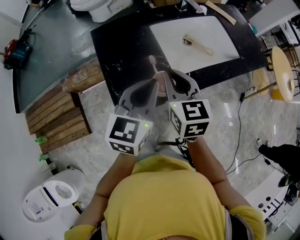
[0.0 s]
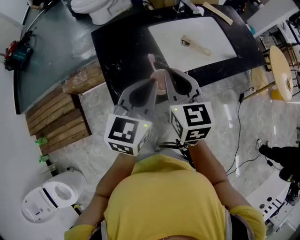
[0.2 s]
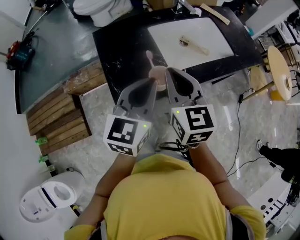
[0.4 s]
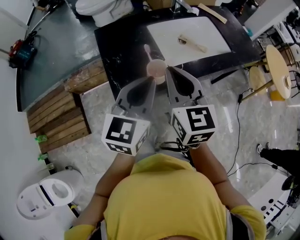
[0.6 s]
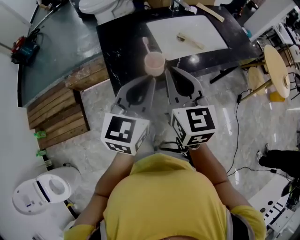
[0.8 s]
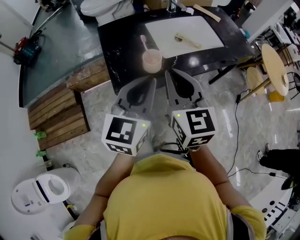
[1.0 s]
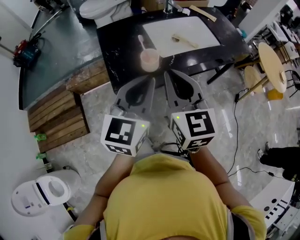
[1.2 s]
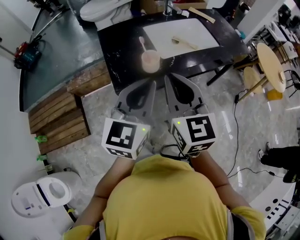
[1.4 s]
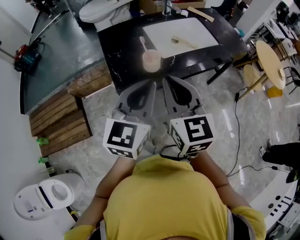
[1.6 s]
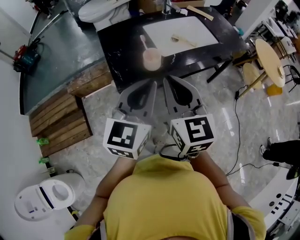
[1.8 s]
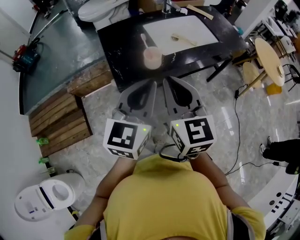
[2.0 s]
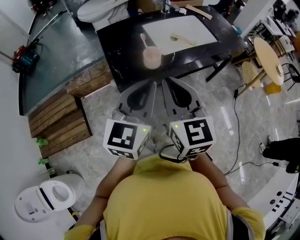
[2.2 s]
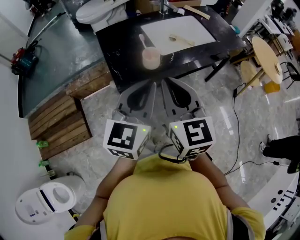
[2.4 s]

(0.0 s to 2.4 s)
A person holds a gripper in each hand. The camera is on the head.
0.0 s - 1.2 s: Both grippers travel together backward and upward, some 20 cm.
1.2 s - 2.4 s: The right gripper travels backward by roughly 5 cm.

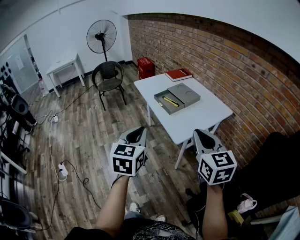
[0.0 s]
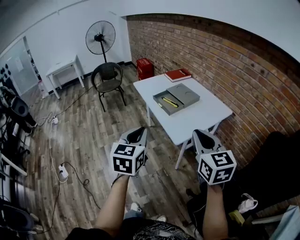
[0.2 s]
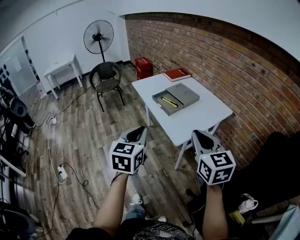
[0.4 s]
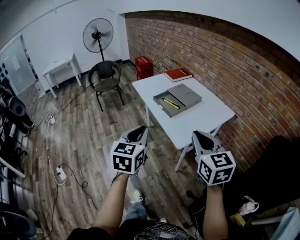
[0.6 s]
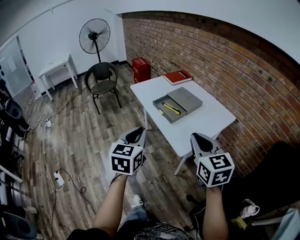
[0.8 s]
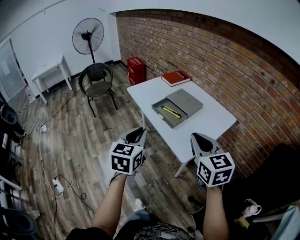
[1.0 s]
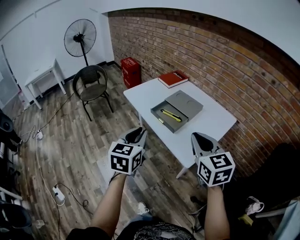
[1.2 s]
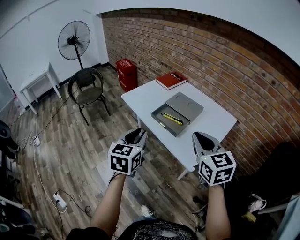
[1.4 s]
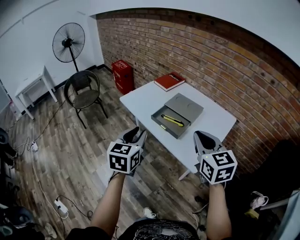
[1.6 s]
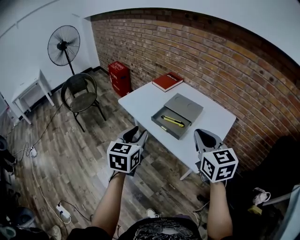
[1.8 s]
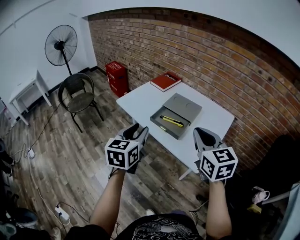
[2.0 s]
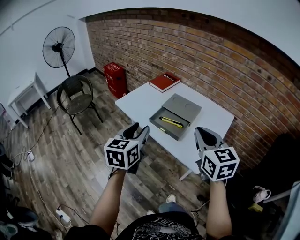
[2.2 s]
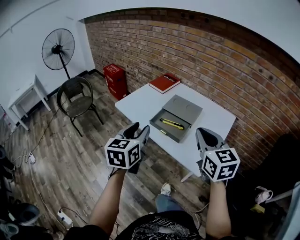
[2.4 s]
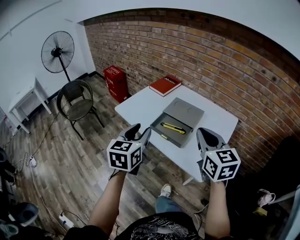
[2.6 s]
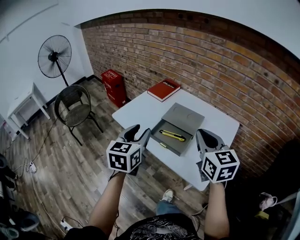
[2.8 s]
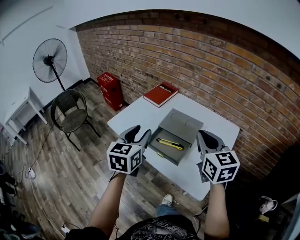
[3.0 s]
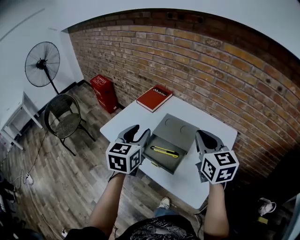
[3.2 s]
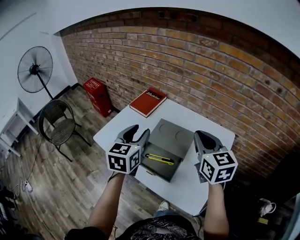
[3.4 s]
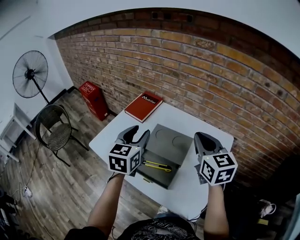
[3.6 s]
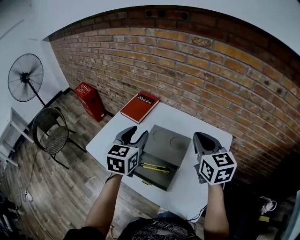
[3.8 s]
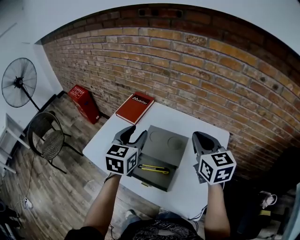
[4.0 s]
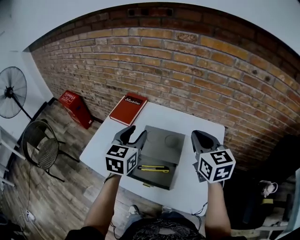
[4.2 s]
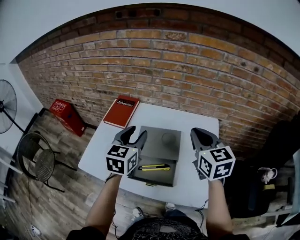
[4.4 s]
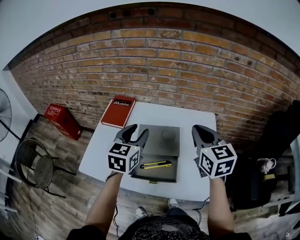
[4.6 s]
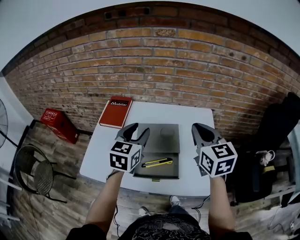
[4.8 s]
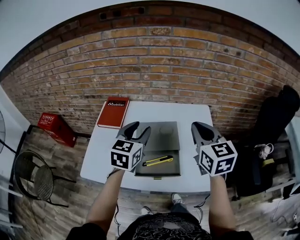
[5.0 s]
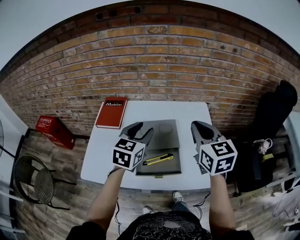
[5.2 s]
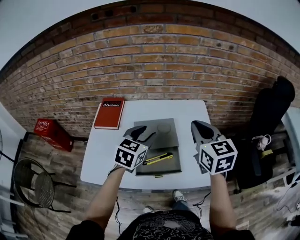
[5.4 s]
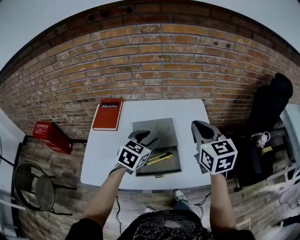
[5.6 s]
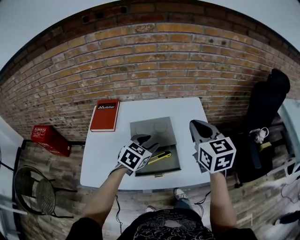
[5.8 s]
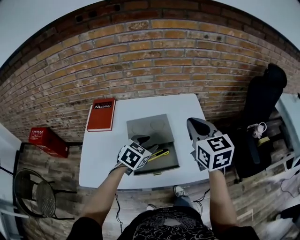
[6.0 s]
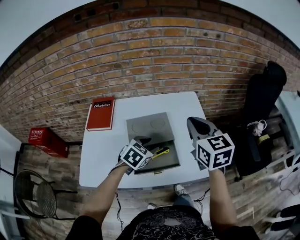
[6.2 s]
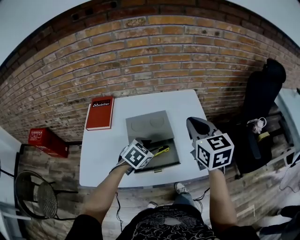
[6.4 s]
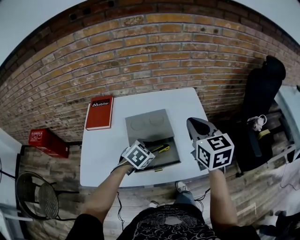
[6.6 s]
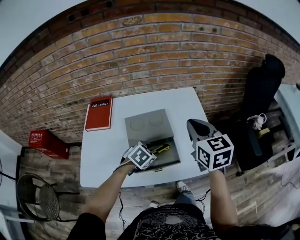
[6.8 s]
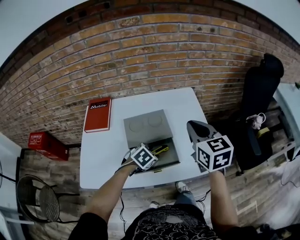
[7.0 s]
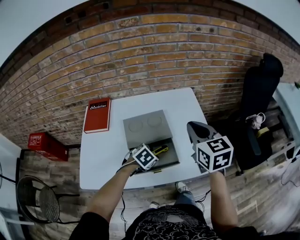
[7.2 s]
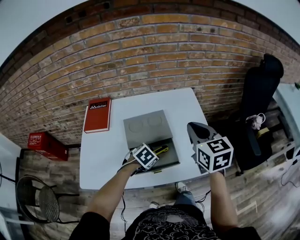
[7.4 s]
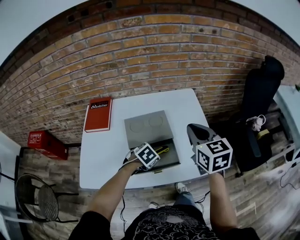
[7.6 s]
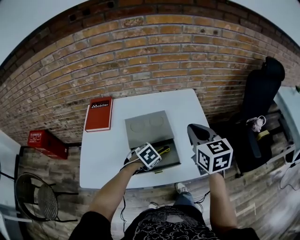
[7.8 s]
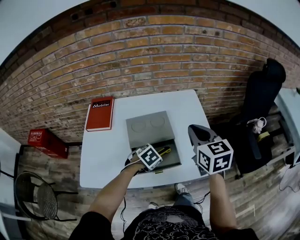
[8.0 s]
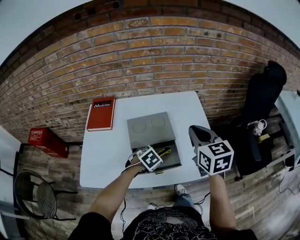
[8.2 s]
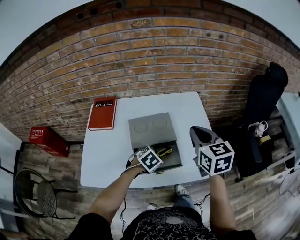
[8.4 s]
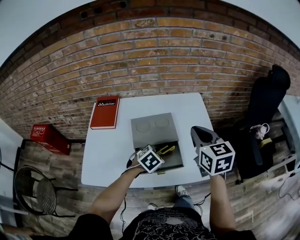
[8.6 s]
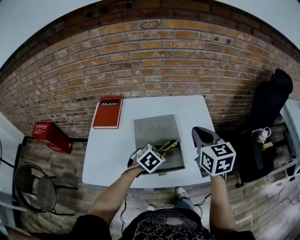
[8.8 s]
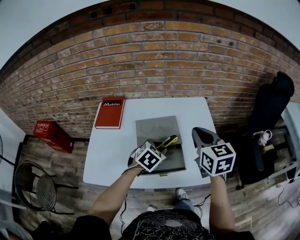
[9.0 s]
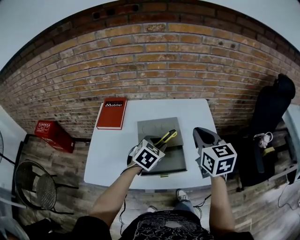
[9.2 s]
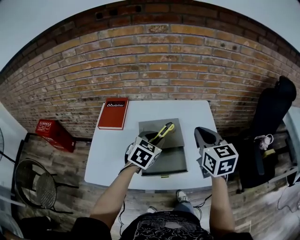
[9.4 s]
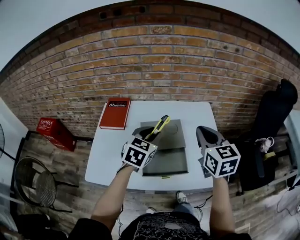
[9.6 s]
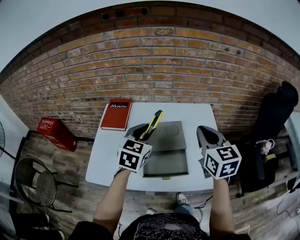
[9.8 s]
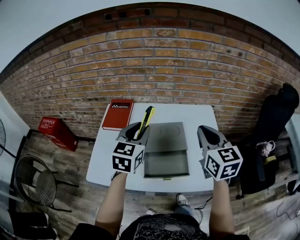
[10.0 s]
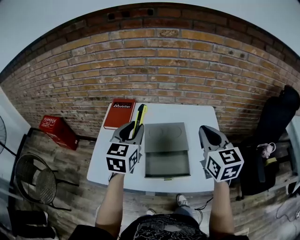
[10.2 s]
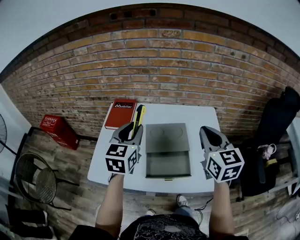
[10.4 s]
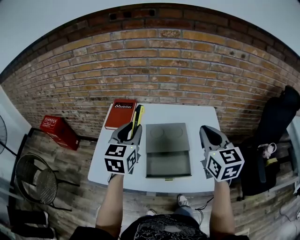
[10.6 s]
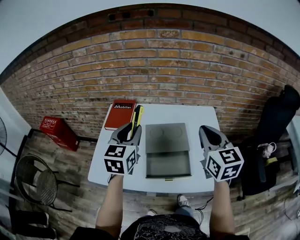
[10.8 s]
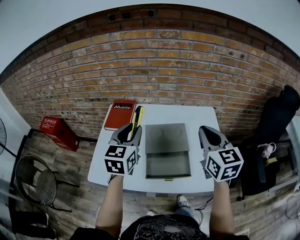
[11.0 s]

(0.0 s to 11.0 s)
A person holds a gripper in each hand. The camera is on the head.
0.0 s - 1.6 s: The grippers both shift forward and to the left by approximately 25 cm. The left gripper opens.
1.6 s - 3.2 s: The two grippers go some 25 cm forward.
3.2 s - 4.8 s: The right gripper swivels approximately 30 degrees. The left gripper shifts by some 15 cm, and rotates some 30 degrees.
4.8 s - 6.2 s: The left gripper goes some 15 cm downward and to the right, and changes its angle by approximately 40 degrees.
6.2 s - 7.8 s: The left gripper goes roughly 10 cm downward, and changes its angle by approximately 20 degrees.
7.8 s - 9.4 s: The left gripper shifts approximately 15 cm upward, and tips its fingers upward by some 30 degrees.
9.4 s - 11.0 s: The left gripper moves to the left and upward, some 15 cm, and rotates about 30 degrees.

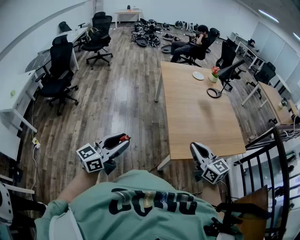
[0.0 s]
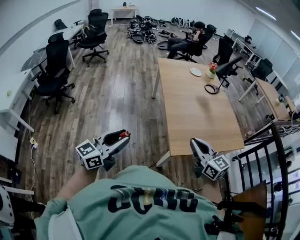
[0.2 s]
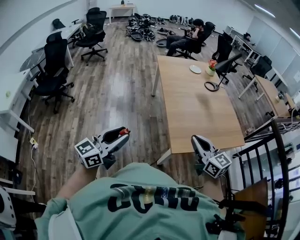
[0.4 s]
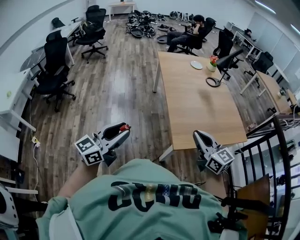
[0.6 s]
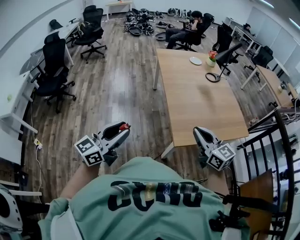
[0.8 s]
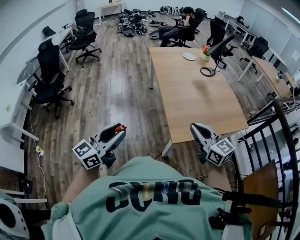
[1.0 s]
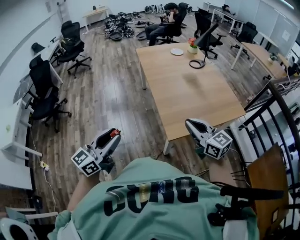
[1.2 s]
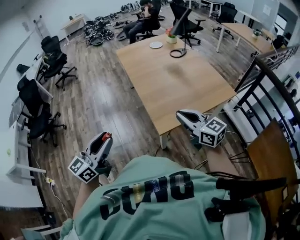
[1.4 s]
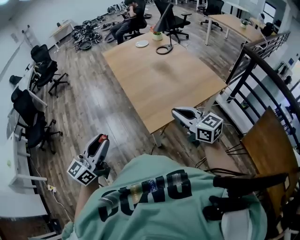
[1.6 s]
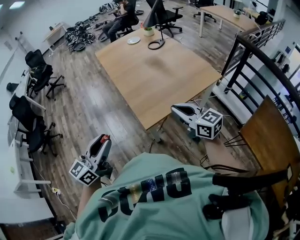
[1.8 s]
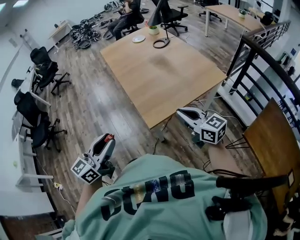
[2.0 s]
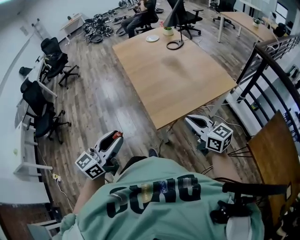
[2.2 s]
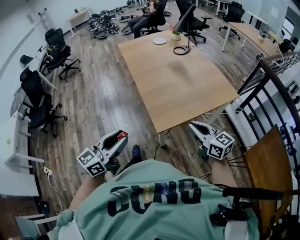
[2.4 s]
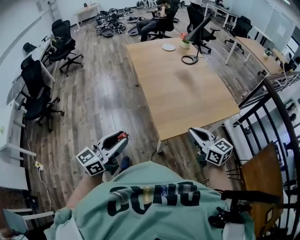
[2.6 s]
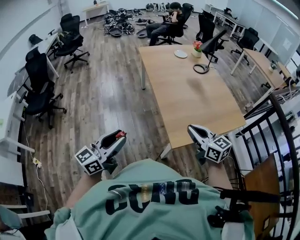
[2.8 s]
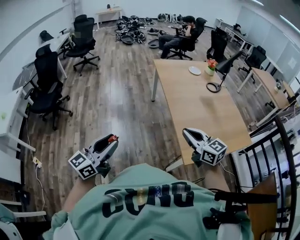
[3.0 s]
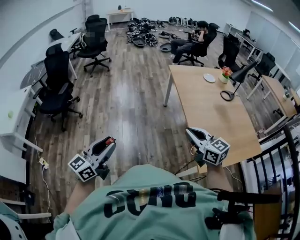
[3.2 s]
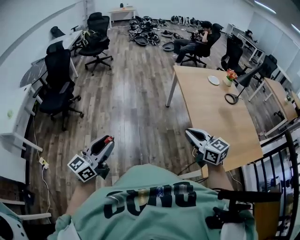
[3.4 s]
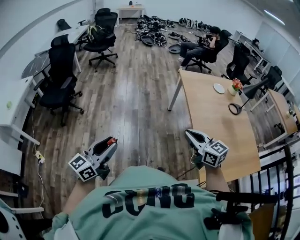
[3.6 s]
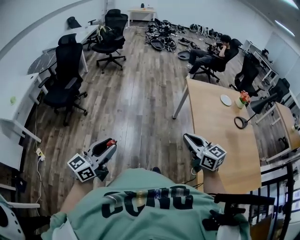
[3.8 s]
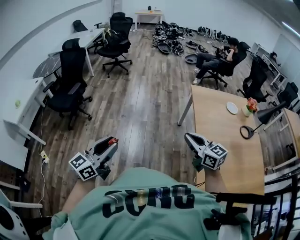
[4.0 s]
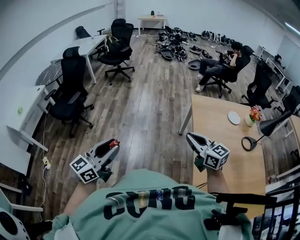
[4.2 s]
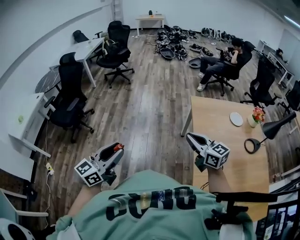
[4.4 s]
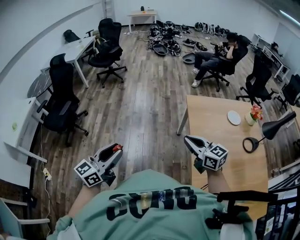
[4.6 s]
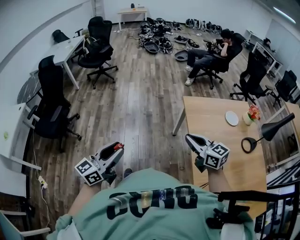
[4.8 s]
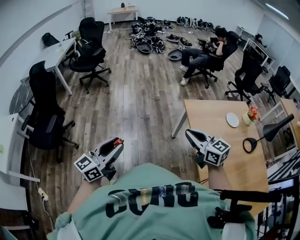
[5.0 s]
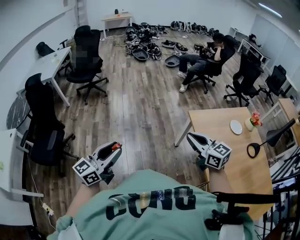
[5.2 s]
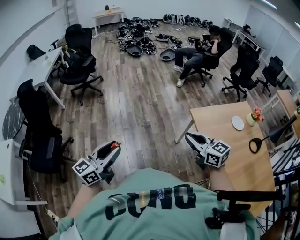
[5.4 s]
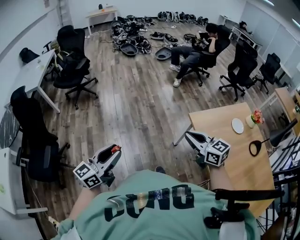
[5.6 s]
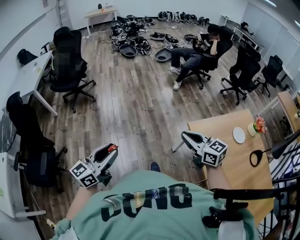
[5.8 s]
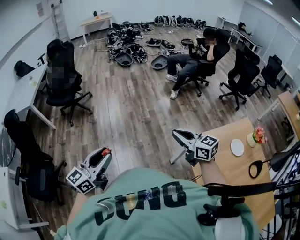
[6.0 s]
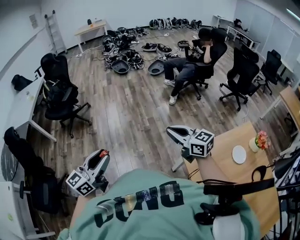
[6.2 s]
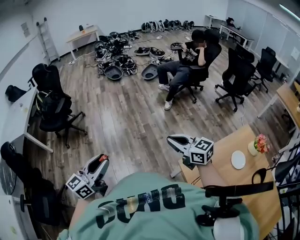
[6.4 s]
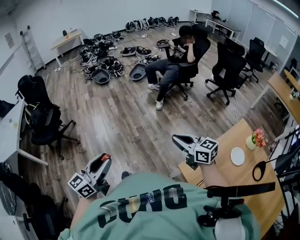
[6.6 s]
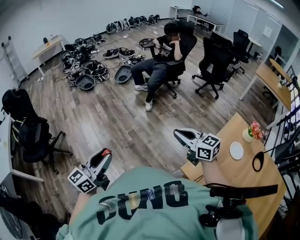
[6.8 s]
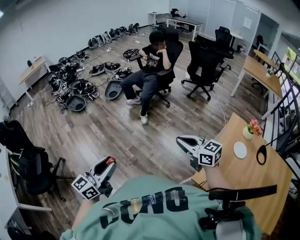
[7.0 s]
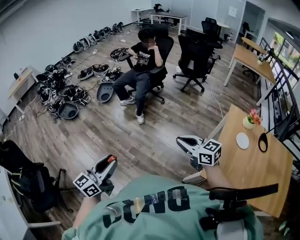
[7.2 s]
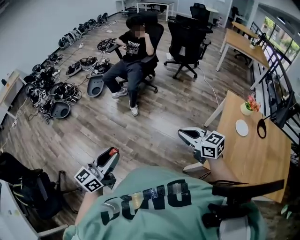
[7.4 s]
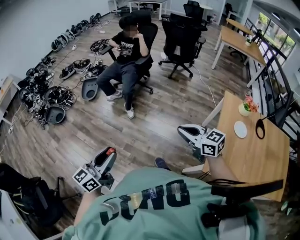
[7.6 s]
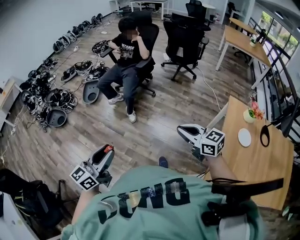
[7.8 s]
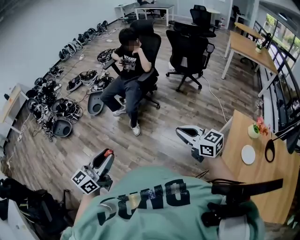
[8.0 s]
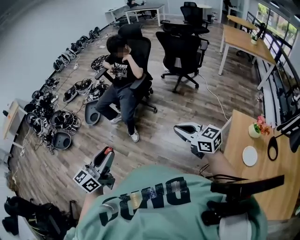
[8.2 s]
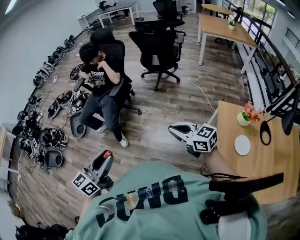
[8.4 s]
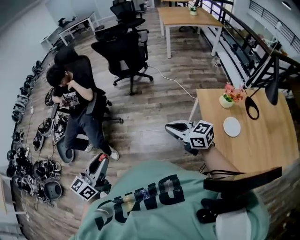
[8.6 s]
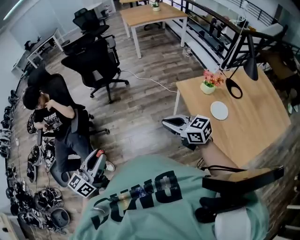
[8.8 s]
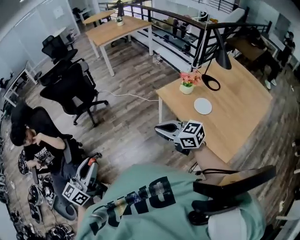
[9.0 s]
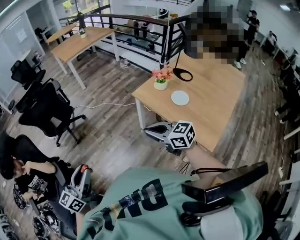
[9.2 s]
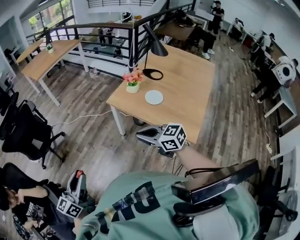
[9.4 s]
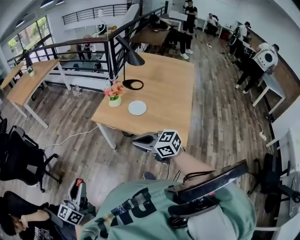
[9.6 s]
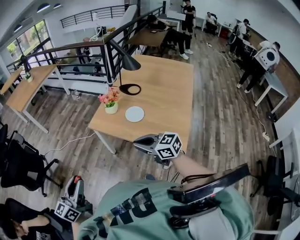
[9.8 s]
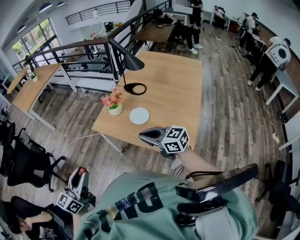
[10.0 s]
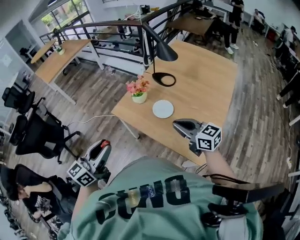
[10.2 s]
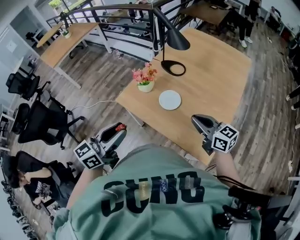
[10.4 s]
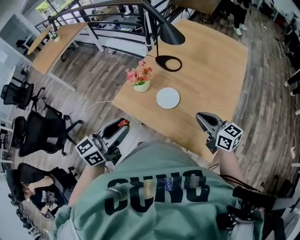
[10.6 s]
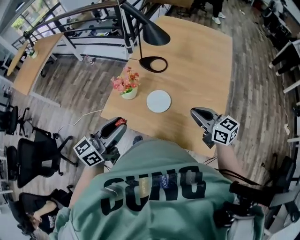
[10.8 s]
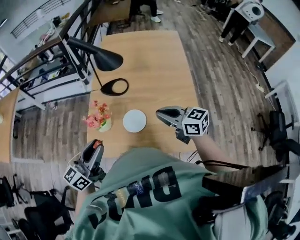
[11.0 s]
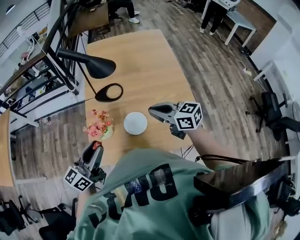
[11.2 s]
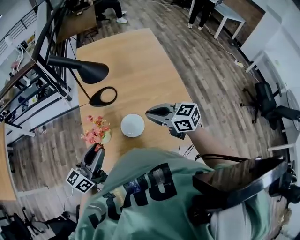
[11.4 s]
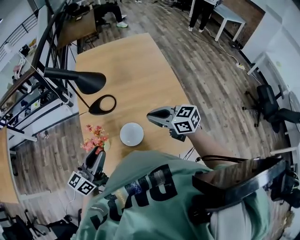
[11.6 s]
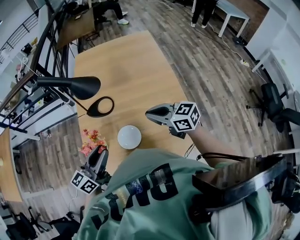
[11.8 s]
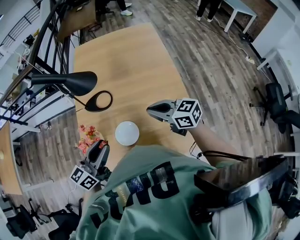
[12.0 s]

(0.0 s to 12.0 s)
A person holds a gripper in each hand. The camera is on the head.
0.0 s - 1.6 s: Both grippers move to the right, roughly 10 cm.
1.6 s - 3.0 s: The left gripper goes some 25 cm to the left; the right gripper moves to the left and forward, roughly 30 cm.
3.0 s - 4.4 s: Both grippers move forward, approximately 40 cm.
4.4 s - 6.0 s: Both grippers are carried forward, roughly 60 cm.
6.0 s - 7.6 s: The two grippers travel together, some 50 cm. The right gripper changes its angle by approximately 40 degrees. The left gripper rotates some 50 degrees.
7.6 s - 9.0 s: The left gripper shifts by roughly 60 cm, and changes its angle by some 50 degrees; the right gripper changes place by about 40 cm, and changes its angle by about 50 degrees.
9.0 s - 10.4 s: The pair of grippers is taken some 40 cm. The left gripper changes its angle by approximately 40 degrees. The right gripper rotates approximately 40 degrees.
10.4 s - 12.0 s: The left gripper moves about 30 cm, and swivels approximately 40 degrees. Meanwhile the right gripper shifts by roughly 15 cm, and changes its angle by about 20 degrees.
